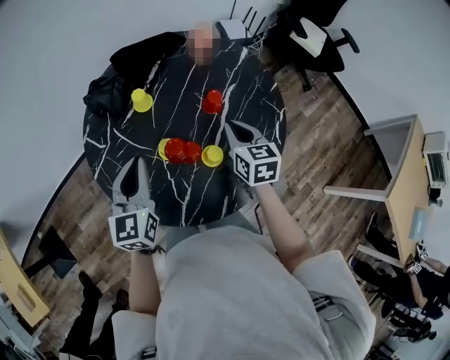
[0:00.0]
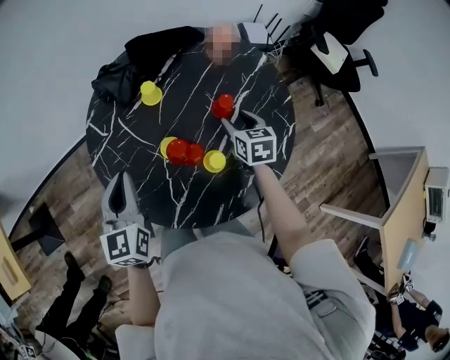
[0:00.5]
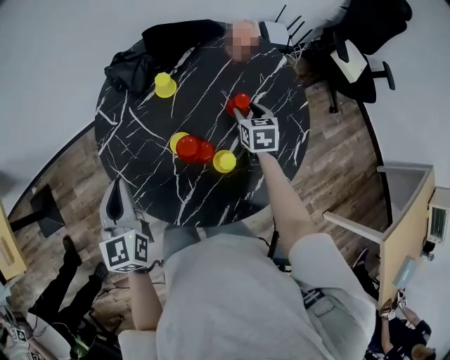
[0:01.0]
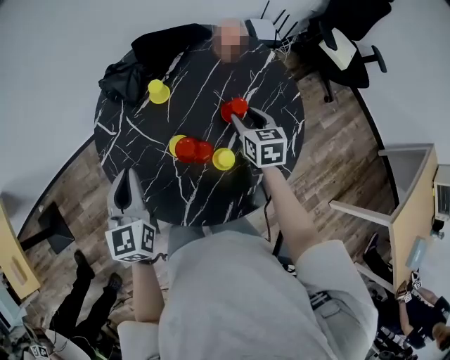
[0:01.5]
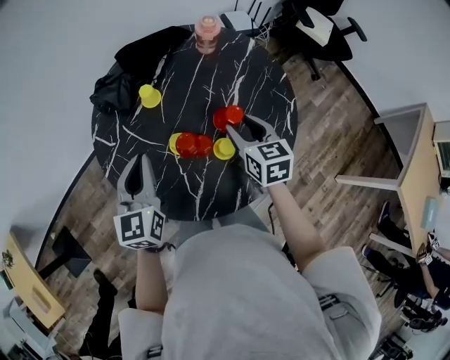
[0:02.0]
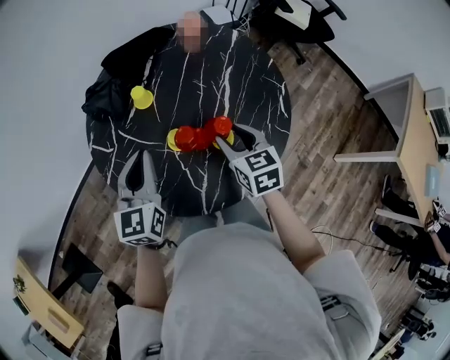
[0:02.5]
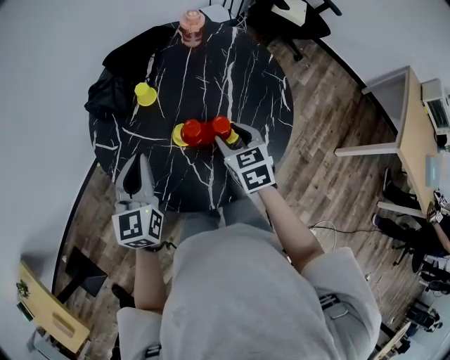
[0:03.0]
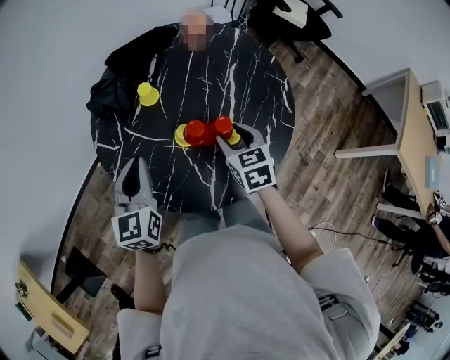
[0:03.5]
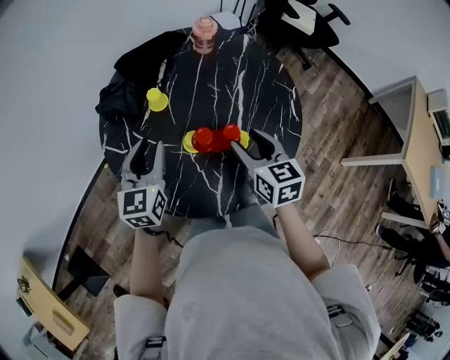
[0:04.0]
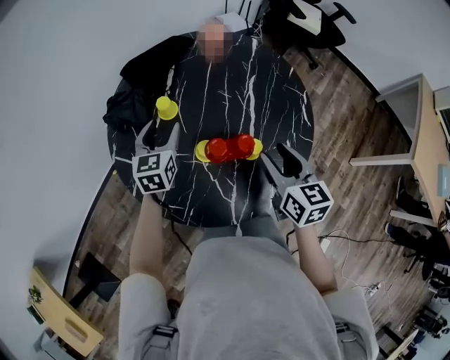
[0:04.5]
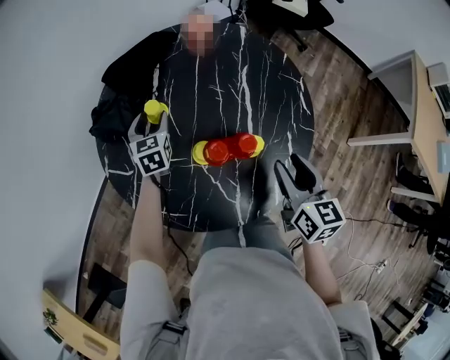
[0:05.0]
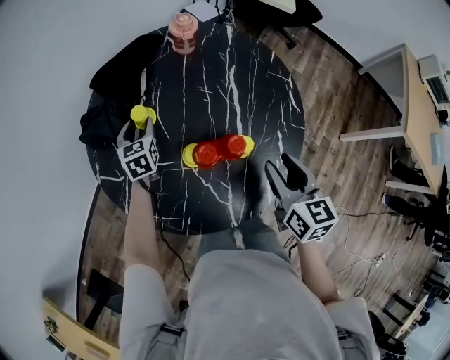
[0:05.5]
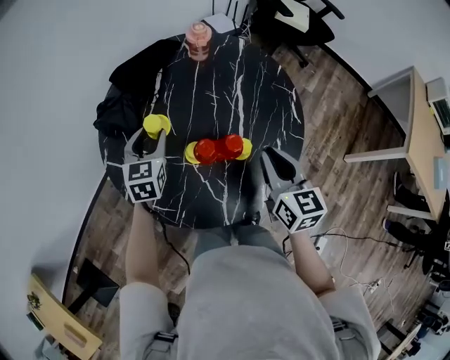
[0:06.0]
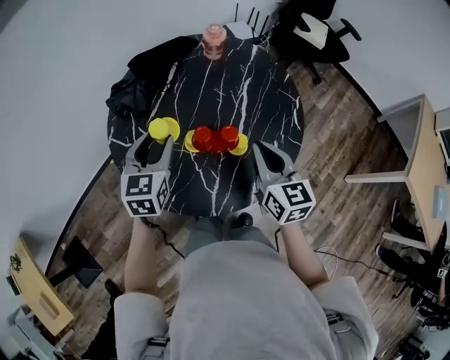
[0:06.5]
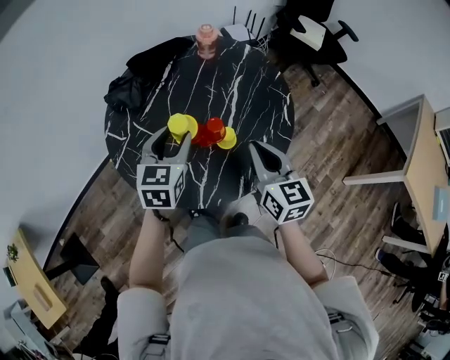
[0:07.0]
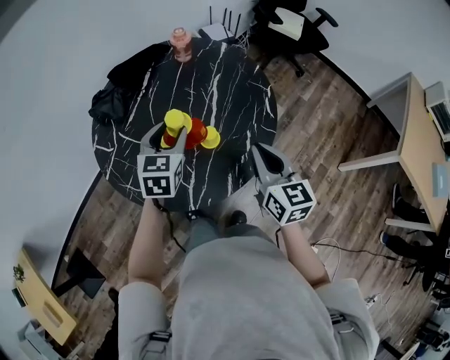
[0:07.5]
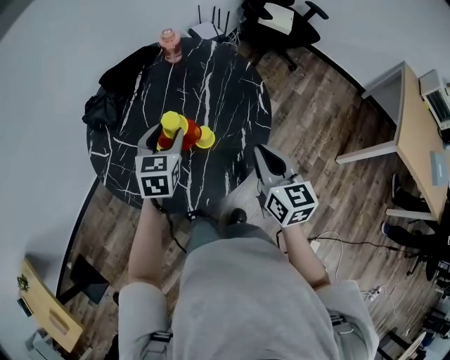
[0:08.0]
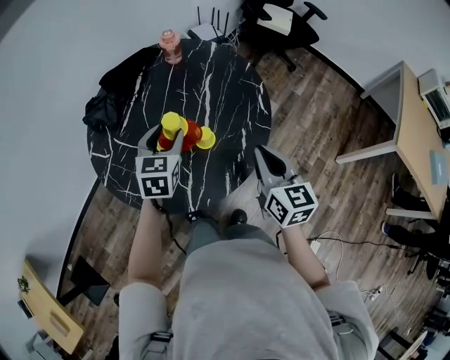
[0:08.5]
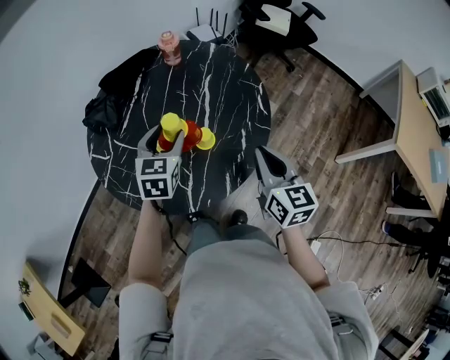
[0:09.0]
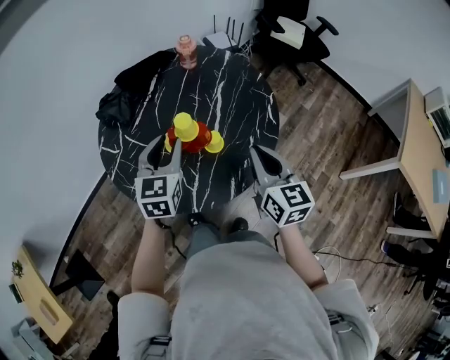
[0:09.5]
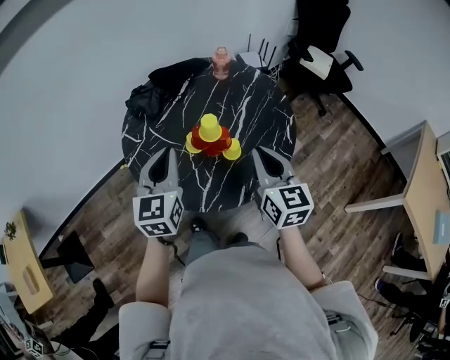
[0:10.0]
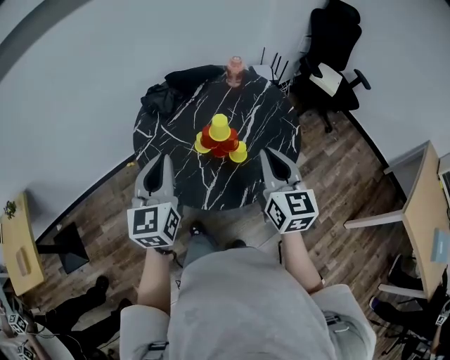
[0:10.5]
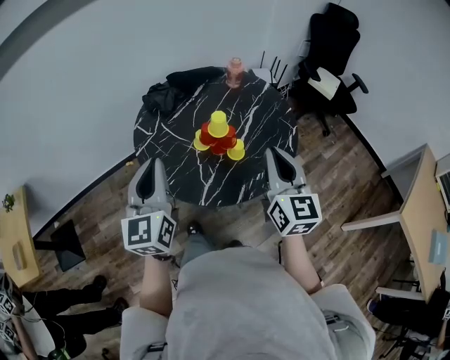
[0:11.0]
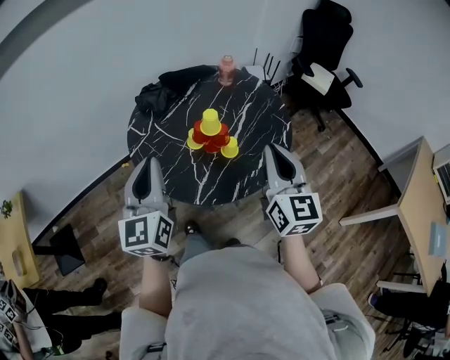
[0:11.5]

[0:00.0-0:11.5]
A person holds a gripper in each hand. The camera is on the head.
0:00.0 to 0:02.0: The left gripper reaches approximately 10 cm to the left, then returns. Meanwhile the right gripper reaches some 10 cm forward, then returns, and opens up.
0:02.0 to 0:04.0: The right gripper moves backward, roughly 5 cm, while the left gripper opens up.
0:04.0 to 0:06.0: The right gripper ends up about 5 cm from where it was, and closes up, while the left gripper shifts some 10 cm forward and downward.
0:06.0 to 0:07.5: The left gripper is displaced to the right, backward and upward by approximately 20 cm; the right gripper moves to the right and backward, approximately 10 cm.
0:07.5 to 0:09.5: The left gripper ends up roughly 5 cm from where it was.
0:09.5 to 0:11.5: The left gripper goes approximately 25 cm backward, upward and to the left, rotates roughly 30 degrees, and closes; the right gripper heads upward, covering some 10 cm.

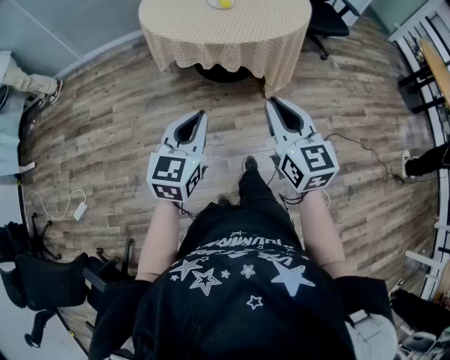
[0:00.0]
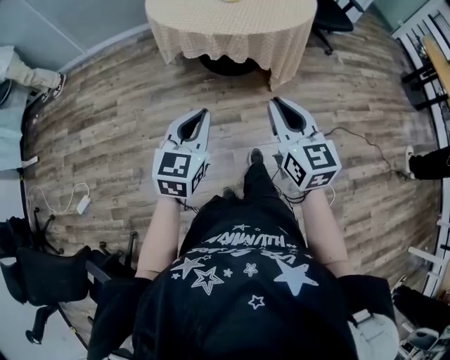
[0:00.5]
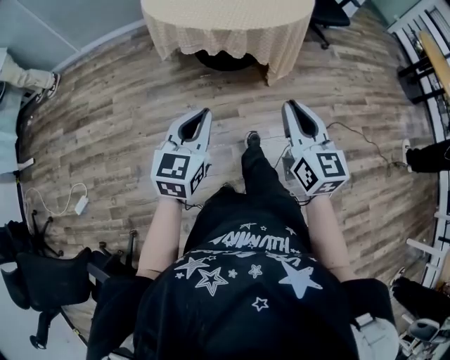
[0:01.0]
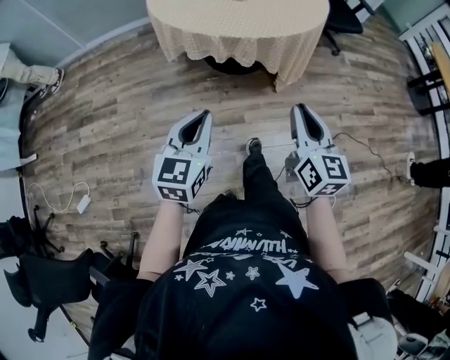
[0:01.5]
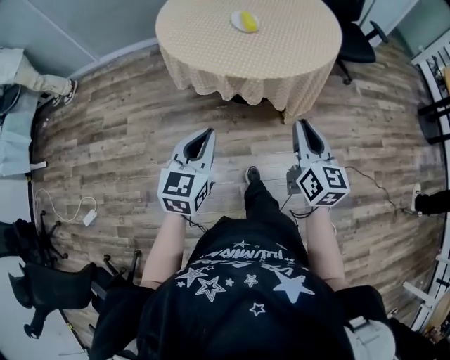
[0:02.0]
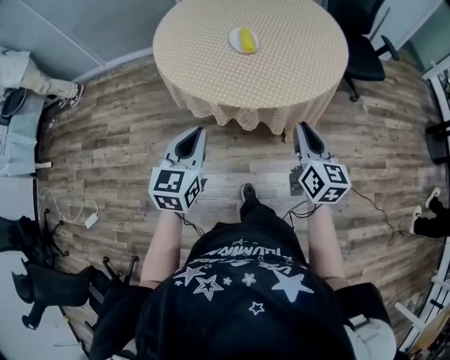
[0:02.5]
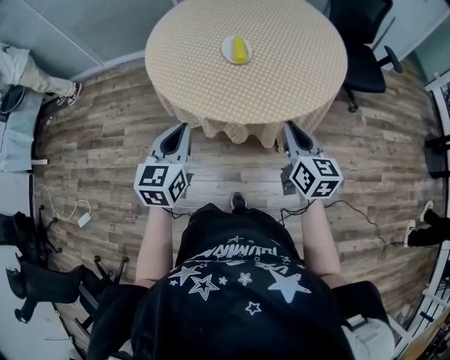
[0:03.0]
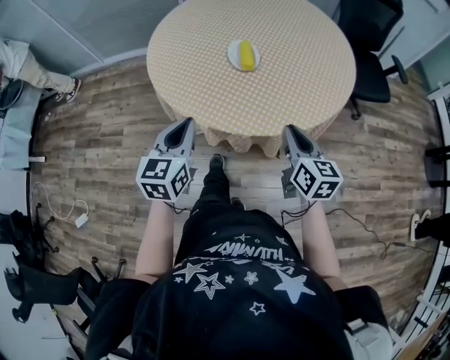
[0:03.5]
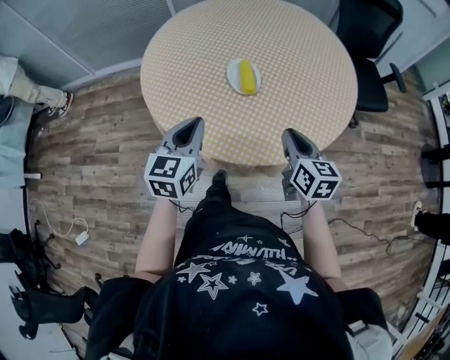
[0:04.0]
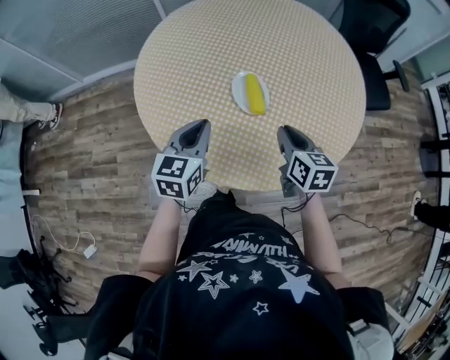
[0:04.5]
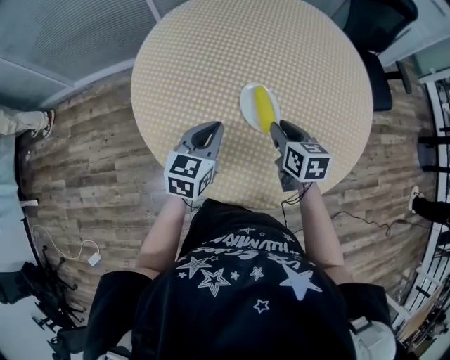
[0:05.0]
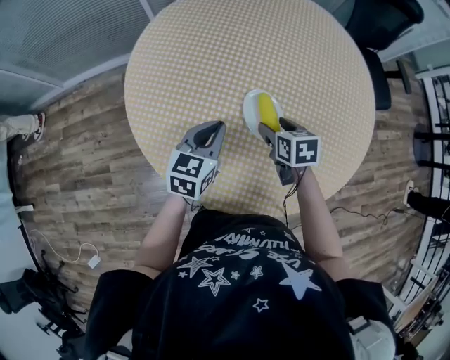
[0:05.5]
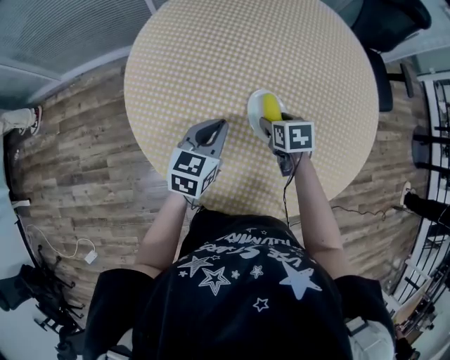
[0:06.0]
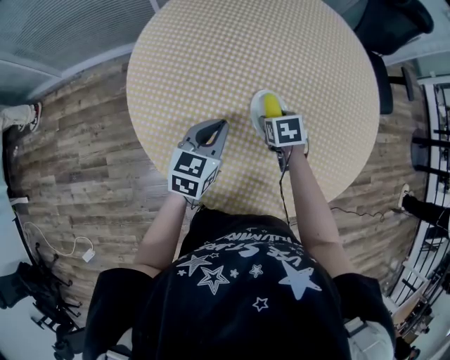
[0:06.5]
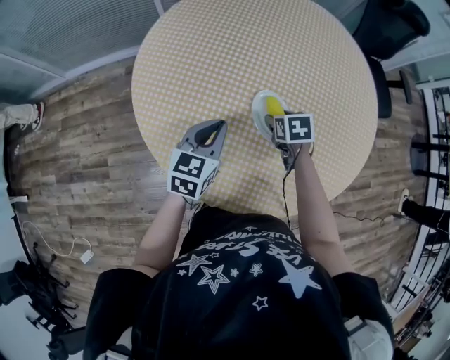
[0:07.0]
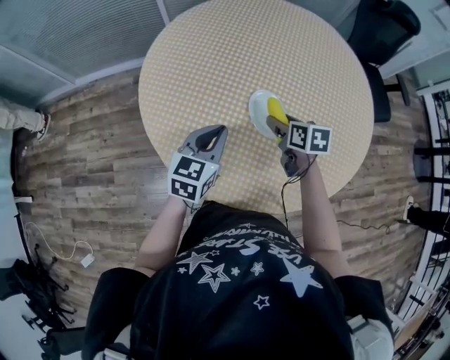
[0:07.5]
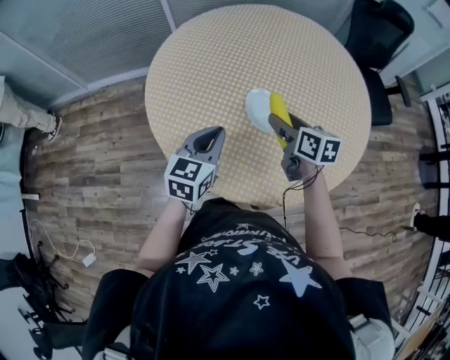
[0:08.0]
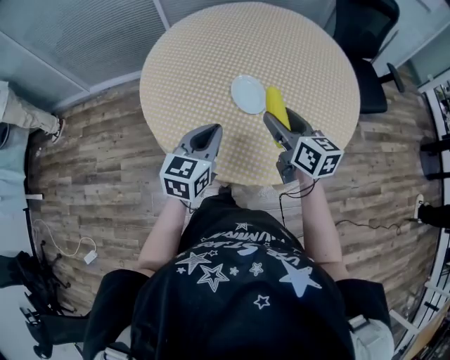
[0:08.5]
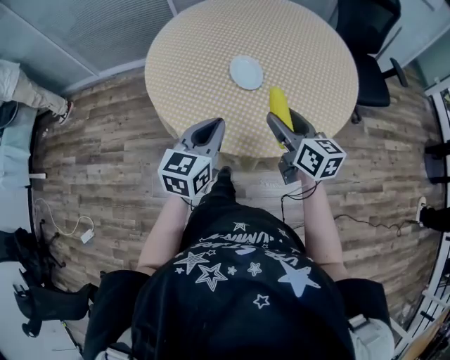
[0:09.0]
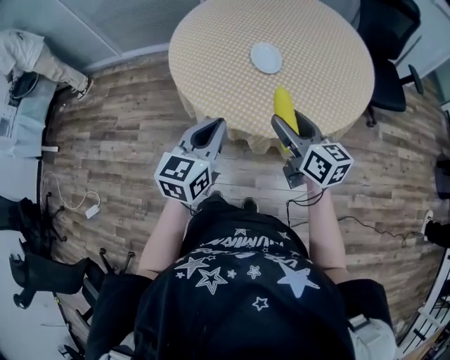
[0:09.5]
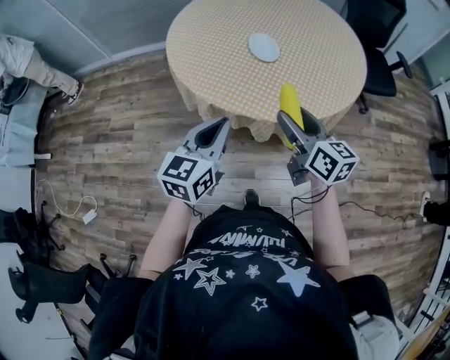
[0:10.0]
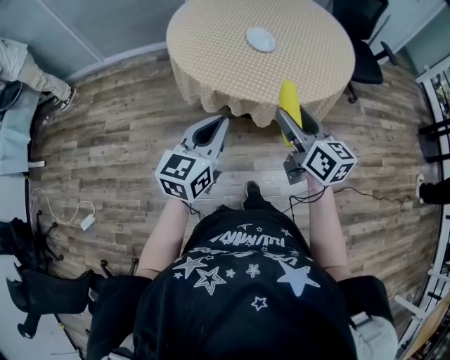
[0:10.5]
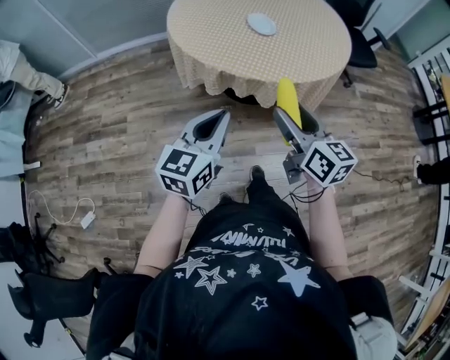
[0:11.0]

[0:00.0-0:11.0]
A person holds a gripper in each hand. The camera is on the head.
0:00.0 to 0:02.0: Both grippers move forward, some 15 cm.
0:02.0 to 0:03.5: The two grippers go about 25 cm forward.
0:03.5 to 0:05.5: The right gripper shifts about 35 cm forward and to the left, angles its fingers downward, by roughly 30 degrees, and opens its fingers. Meanwhile the left gripper moves forward, some 30 cm, and turns by roughly 20 degrees.
0:05.5 to 0:07.5: The left gripper moves some 5 cm; the right gripper reaches approximately 5 cm downward, then returns.
0:07.5 to 0:09.0: The left gripper travels backward and to the right by some 20 cm; the right gripper heads backward and upward, covering roughly 25 cm, and points its fingers about 30 degrees further upward.
0:09.0 to 0:11.0: The two grippers go some 30 cm backward and to the left.

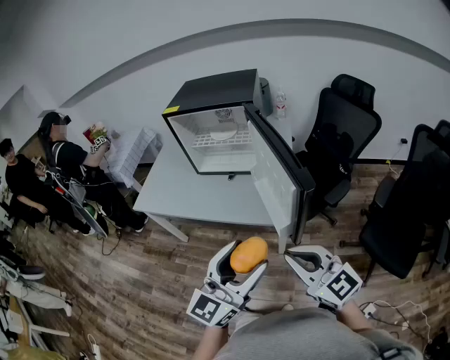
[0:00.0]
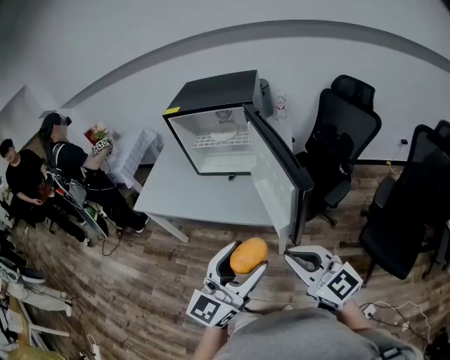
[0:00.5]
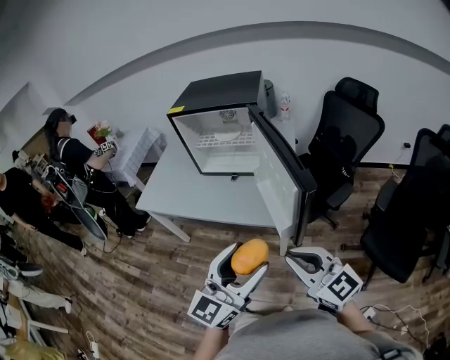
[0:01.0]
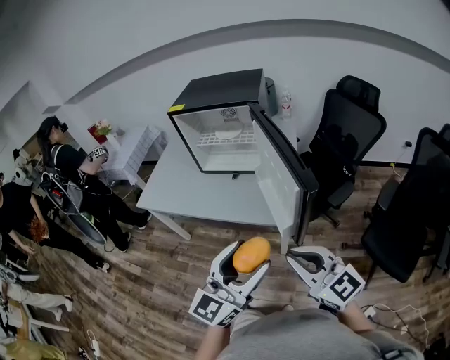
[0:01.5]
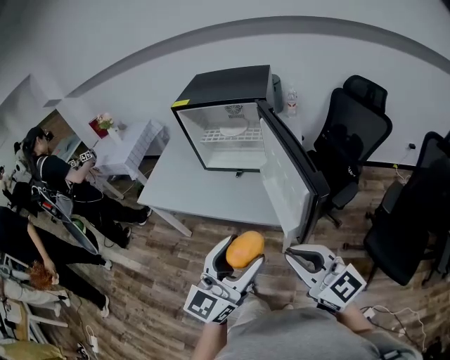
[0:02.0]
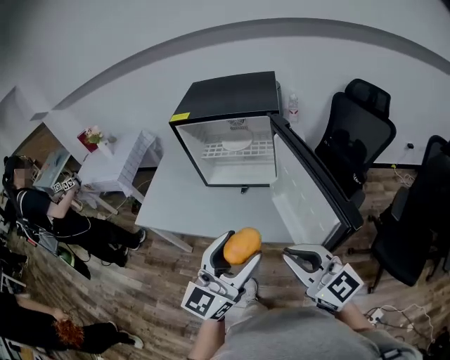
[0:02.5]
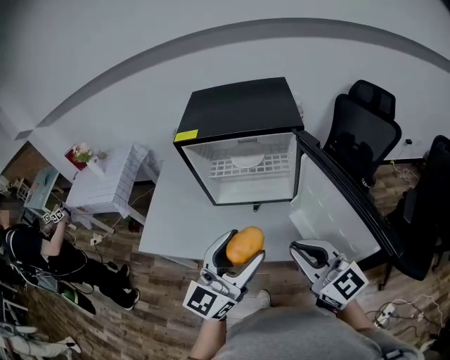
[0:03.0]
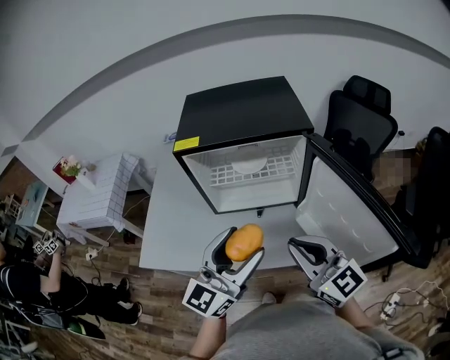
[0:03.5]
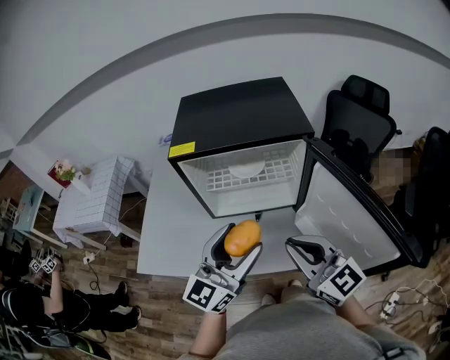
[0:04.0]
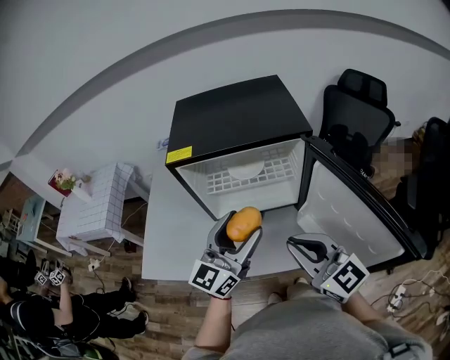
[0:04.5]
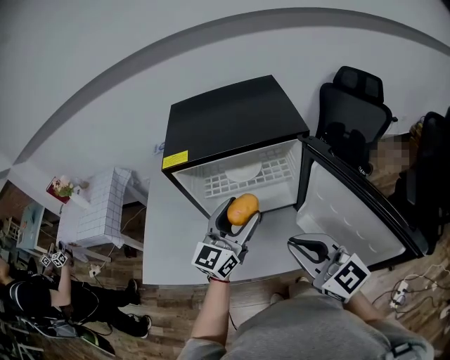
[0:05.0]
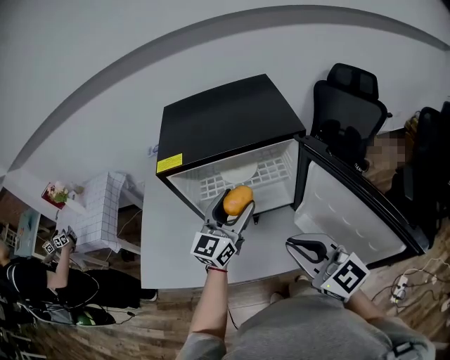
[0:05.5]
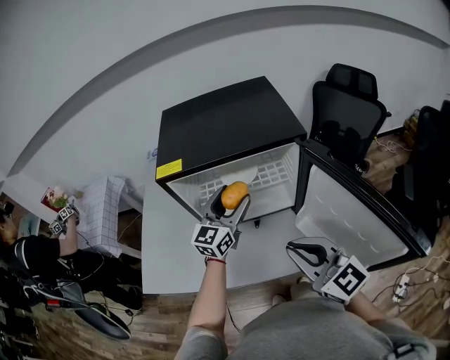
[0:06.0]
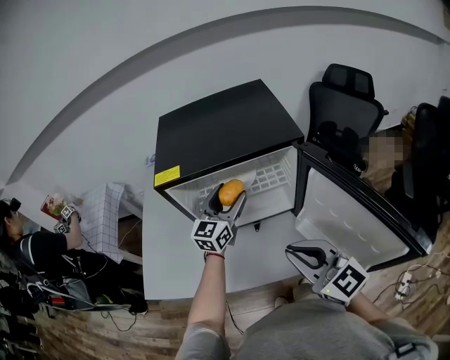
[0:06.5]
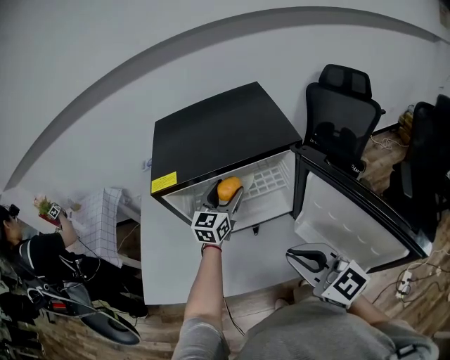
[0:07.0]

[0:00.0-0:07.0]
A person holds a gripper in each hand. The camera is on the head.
0:00.0 to 0:02.0: The grippers stay close to where they were, moving slightly.
0:02.0 to 0:03.5: Both grippers move forward and to the left, about 35 cm.
0:03.5 to 0:05.0: The left gripper shifts about 15 cm forward.
0:05.0 to 0:07.0: The left gripper shifts some 20 cm forward and downward.
